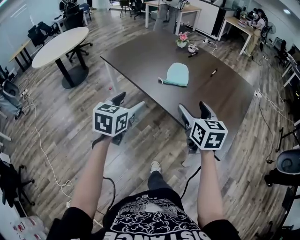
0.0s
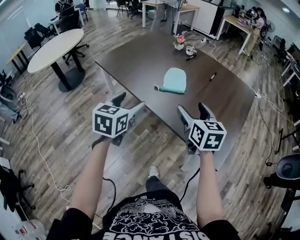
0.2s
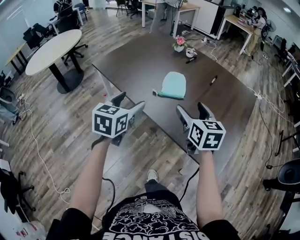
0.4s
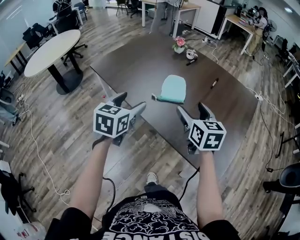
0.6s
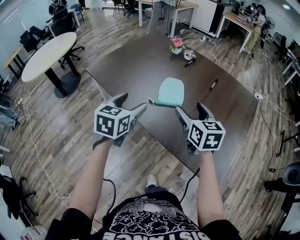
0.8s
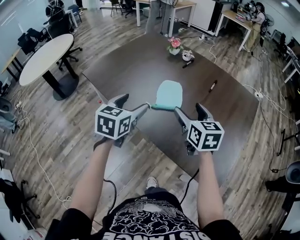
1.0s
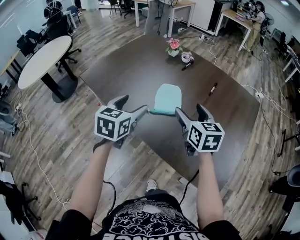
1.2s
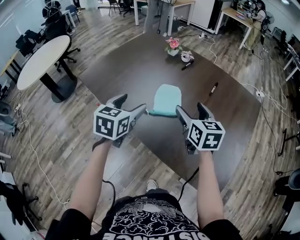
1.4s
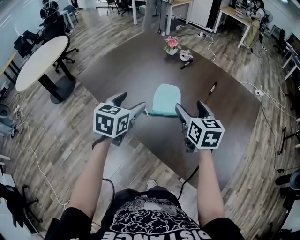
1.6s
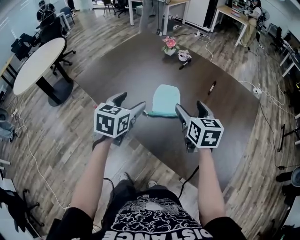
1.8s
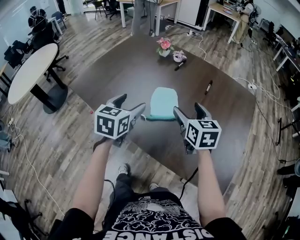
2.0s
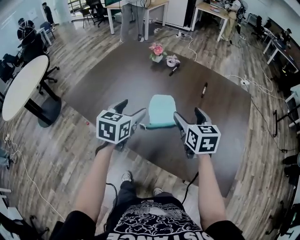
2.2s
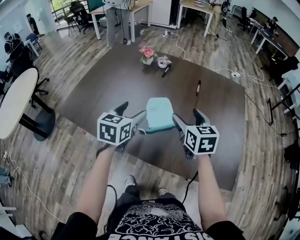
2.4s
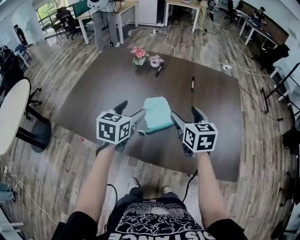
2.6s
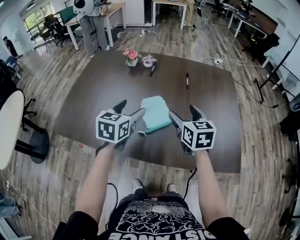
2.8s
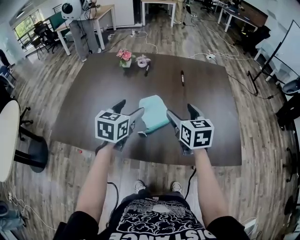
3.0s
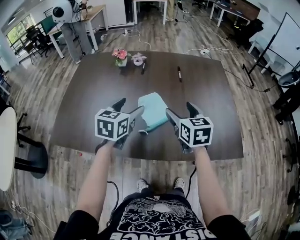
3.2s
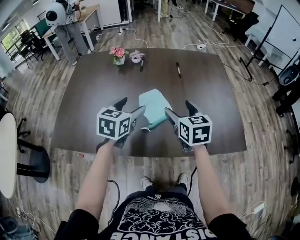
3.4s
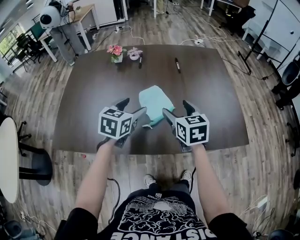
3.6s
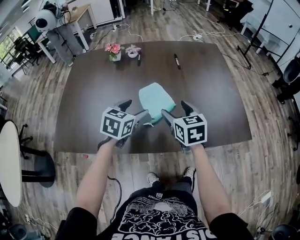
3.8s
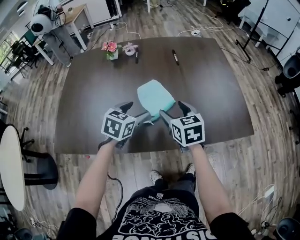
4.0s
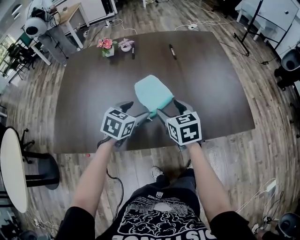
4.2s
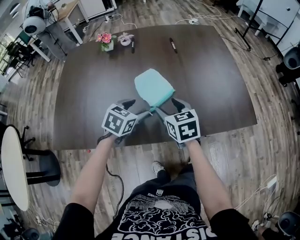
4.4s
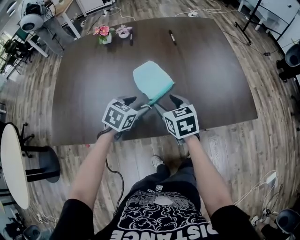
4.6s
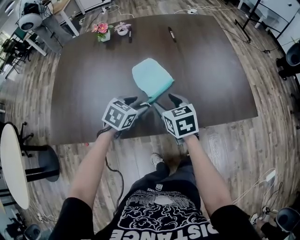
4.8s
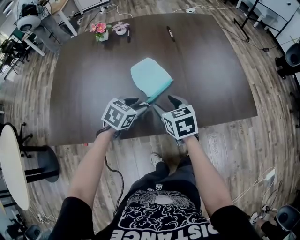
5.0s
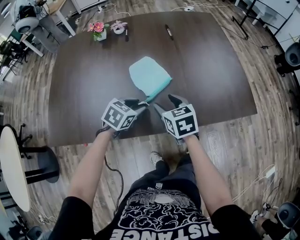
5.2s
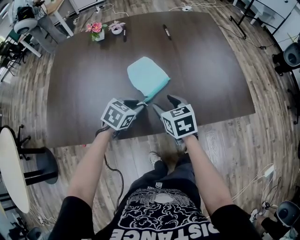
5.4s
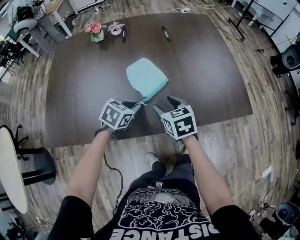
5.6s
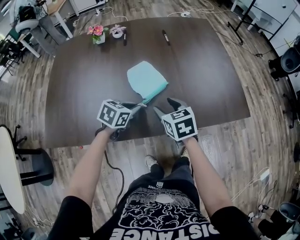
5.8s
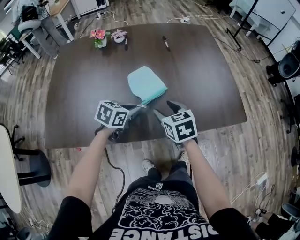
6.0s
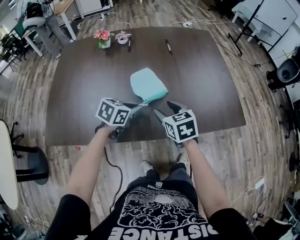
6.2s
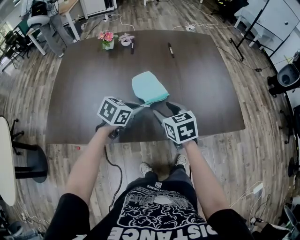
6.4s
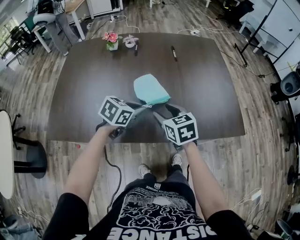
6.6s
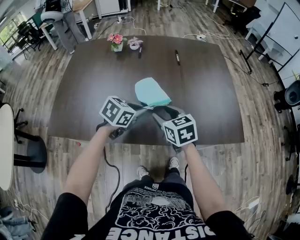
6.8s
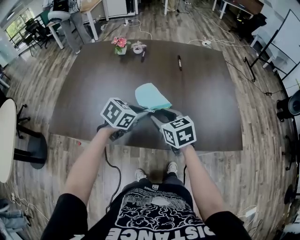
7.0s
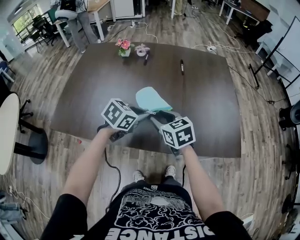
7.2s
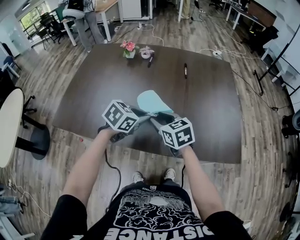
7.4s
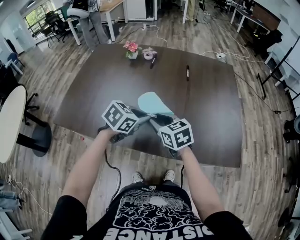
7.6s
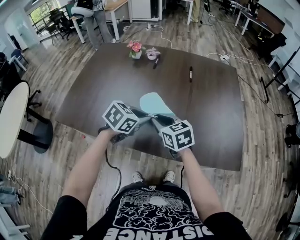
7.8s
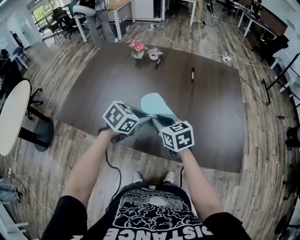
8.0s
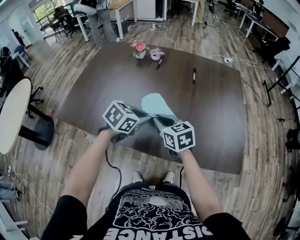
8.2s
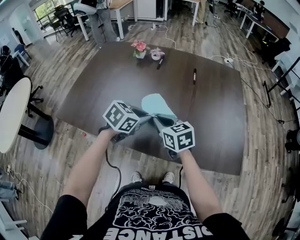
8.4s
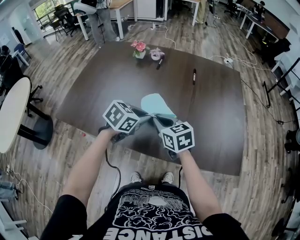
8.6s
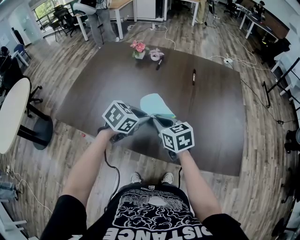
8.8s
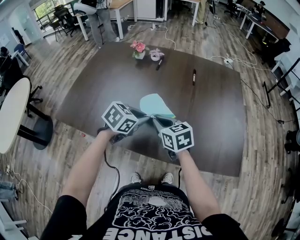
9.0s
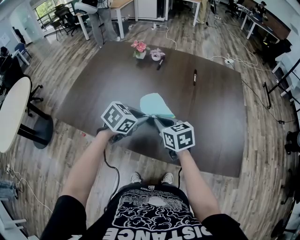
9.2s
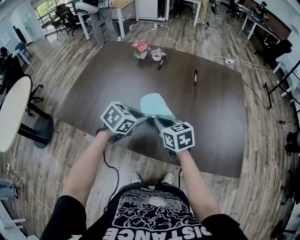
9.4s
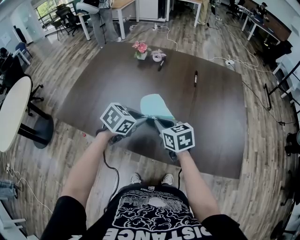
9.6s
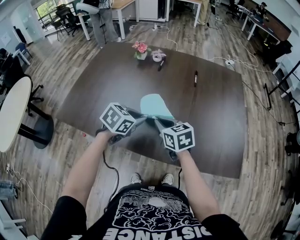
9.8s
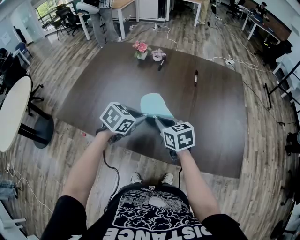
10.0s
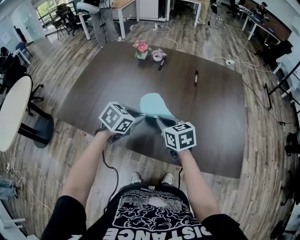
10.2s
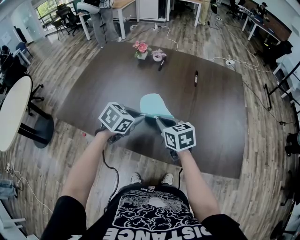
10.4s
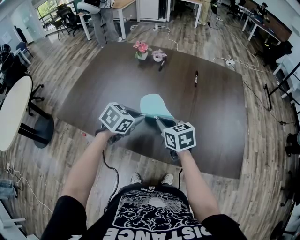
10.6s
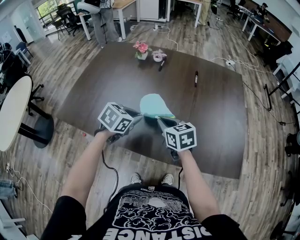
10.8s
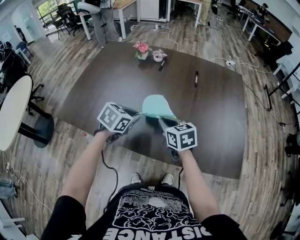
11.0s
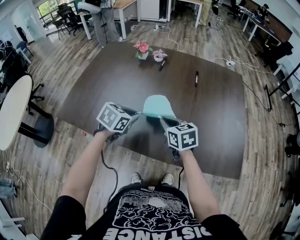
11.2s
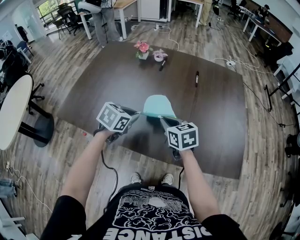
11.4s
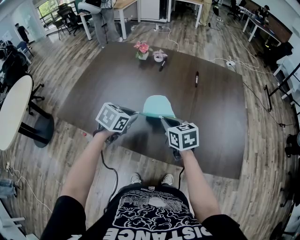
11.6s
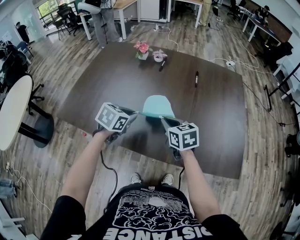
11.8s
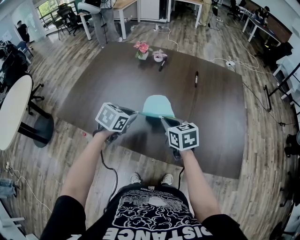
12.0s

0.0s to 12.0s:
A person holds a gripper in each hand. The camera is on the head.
0.0s to 1.6s: The two grippers go approximately 25 cm forward.
1.6s to 3.0s: The left gripper changes place by about 10 cm, and changes its angle by some 30 degrees, while the right gripper turns by about 30 degrees.
3.0s to 4.4s: The right gripper moves downward, backward and to the left, approximately 15 cm. The left gripper travels downward by roughly 15 cm, and swivels roughly 30 degrees.
4.4s to 6.0s: The left gripper closes up.
6.0s to 7.6s: The left gripper shifts roughly 10 cm upward, while the right gripper ends up roughly 5 cm from where it was, and changes its angle by roughly 30 degrees.
7.6s to 10.4s: The grippers make only small movements.
10.4s to 12.0s: There are only small adjustments of the grippers.

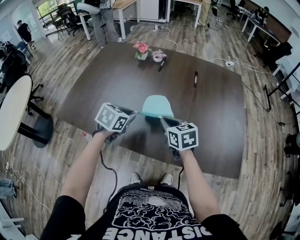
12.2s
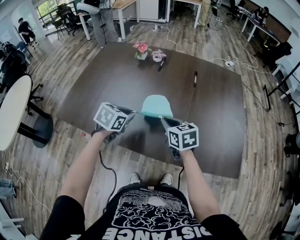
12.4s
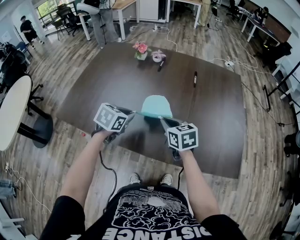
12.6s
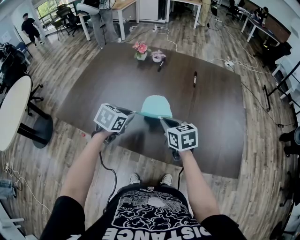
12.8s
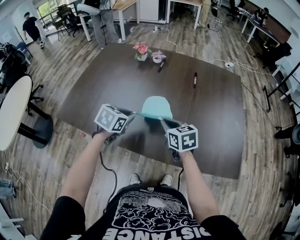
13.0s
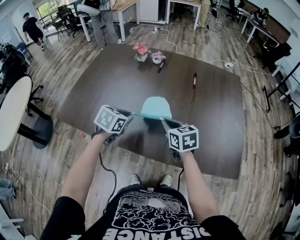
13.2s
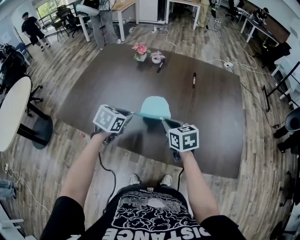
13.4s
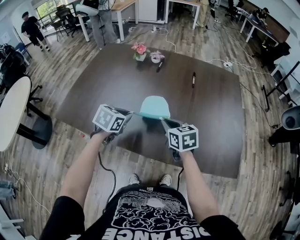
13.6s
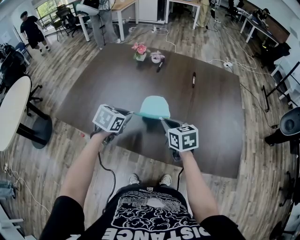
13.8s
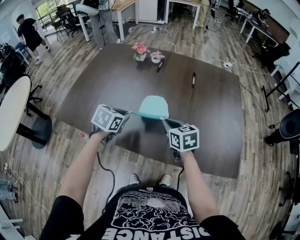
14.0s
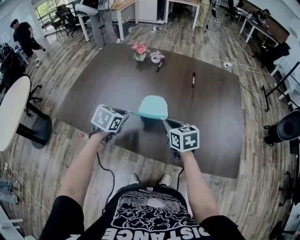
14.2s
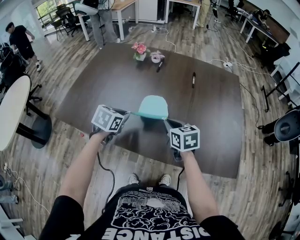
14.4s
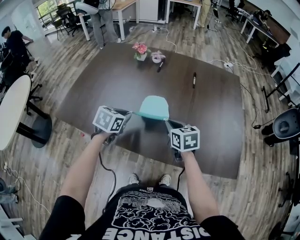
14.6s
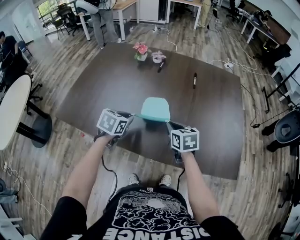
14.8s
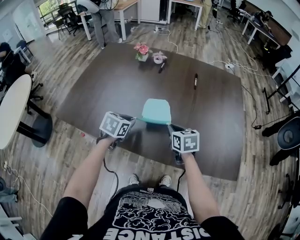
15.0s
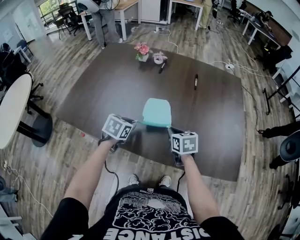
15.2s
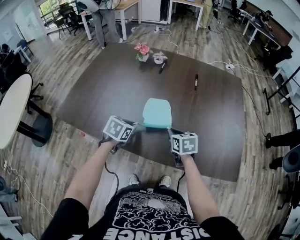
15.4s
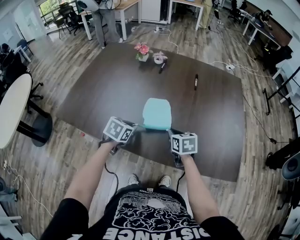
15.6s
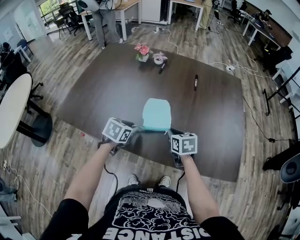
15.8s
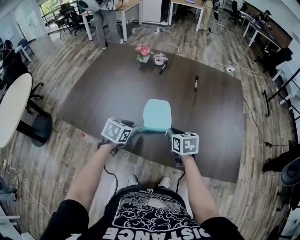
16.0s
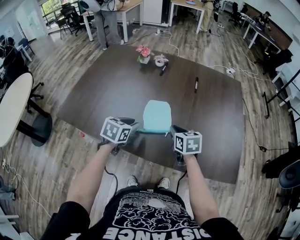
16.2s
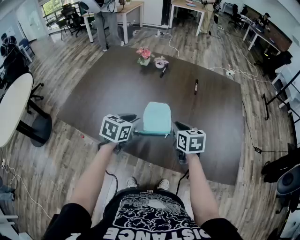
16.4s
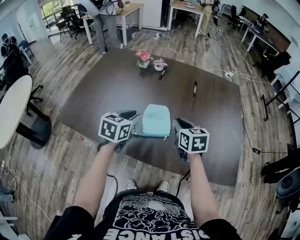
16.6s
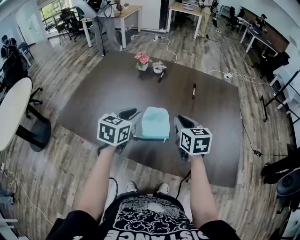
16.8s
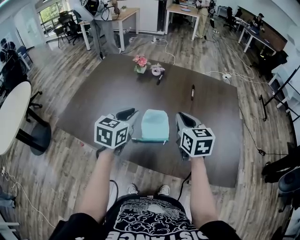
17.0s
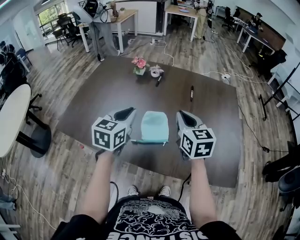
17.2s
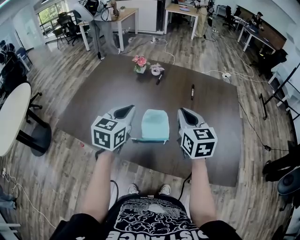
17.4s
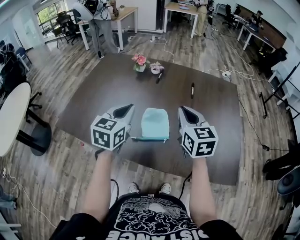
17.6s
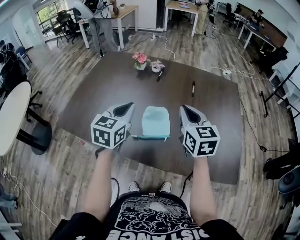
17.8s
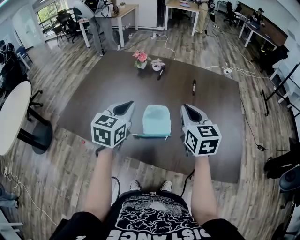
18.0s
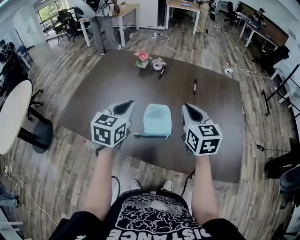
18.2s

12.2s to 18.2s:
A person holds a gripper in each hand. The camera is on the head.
12.2s to 13.8s: There are only small adjustments of the grippers.
13.8s to 15.2s: The right gripper shifts roughly 5 cm downward, while the left gripper moves approximately 5 cm.
15.2s to 16.6s: The grippers both shift upward by roughly 10 cm.
16.6s to 18.2s: Both grippers travel together upward, roughly 10 cm.

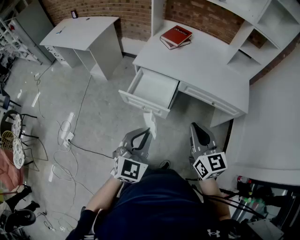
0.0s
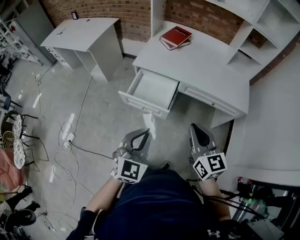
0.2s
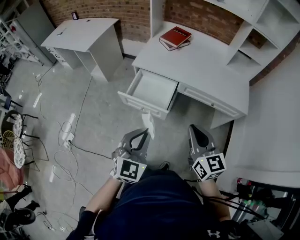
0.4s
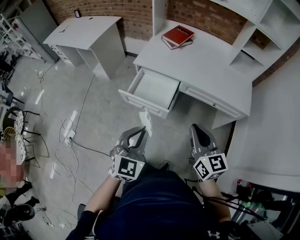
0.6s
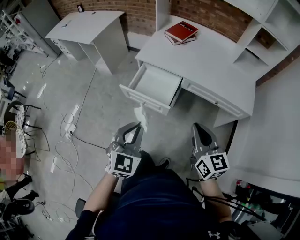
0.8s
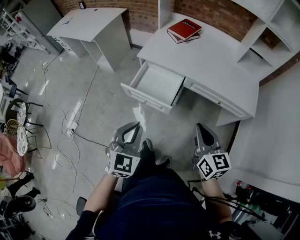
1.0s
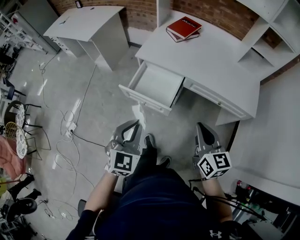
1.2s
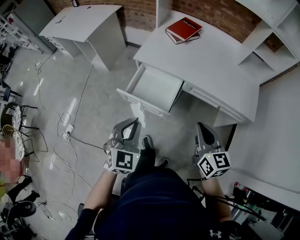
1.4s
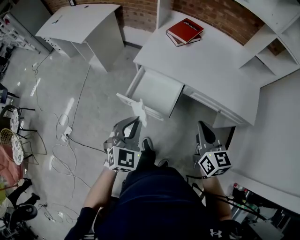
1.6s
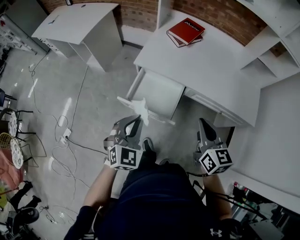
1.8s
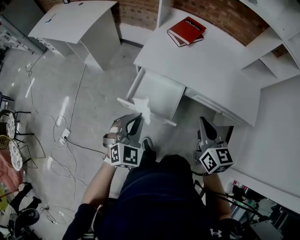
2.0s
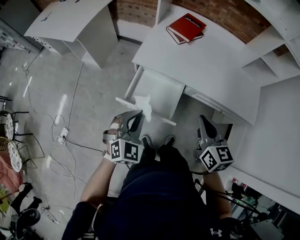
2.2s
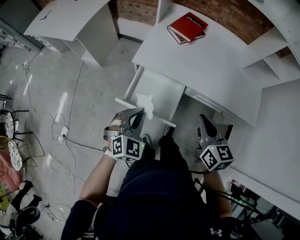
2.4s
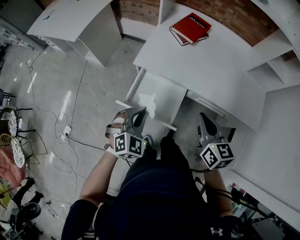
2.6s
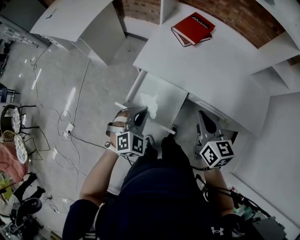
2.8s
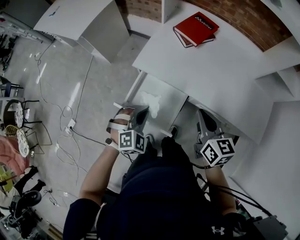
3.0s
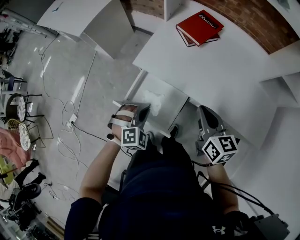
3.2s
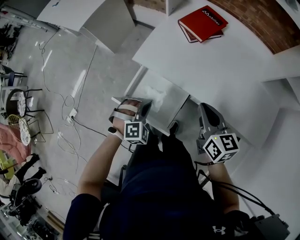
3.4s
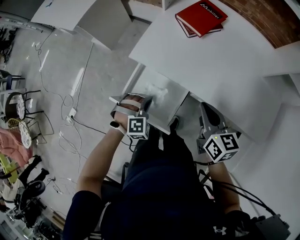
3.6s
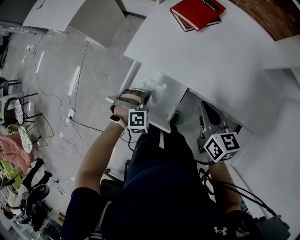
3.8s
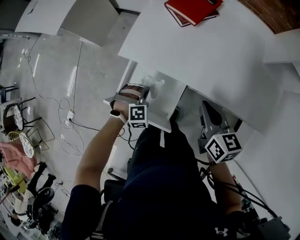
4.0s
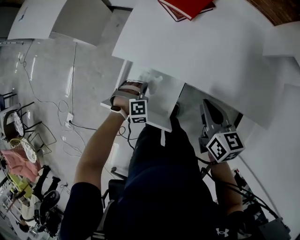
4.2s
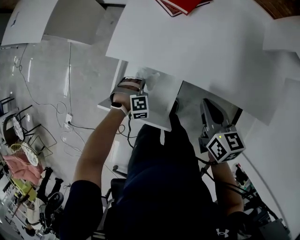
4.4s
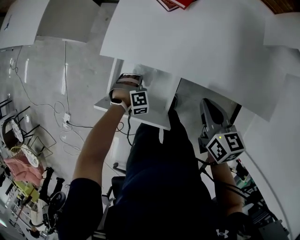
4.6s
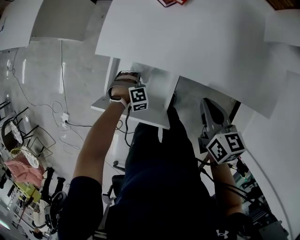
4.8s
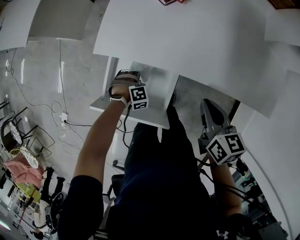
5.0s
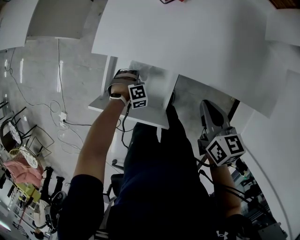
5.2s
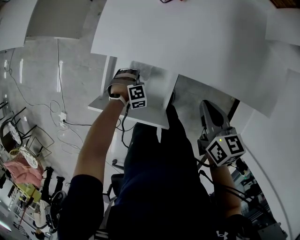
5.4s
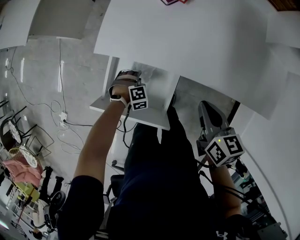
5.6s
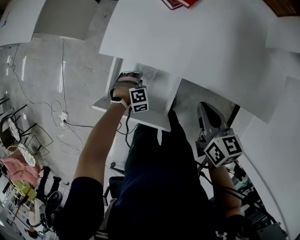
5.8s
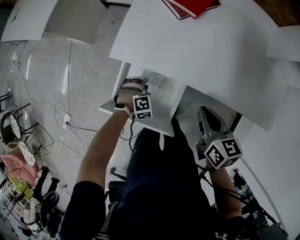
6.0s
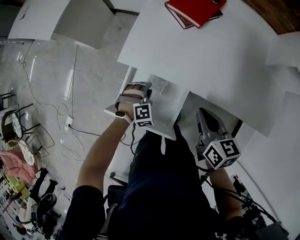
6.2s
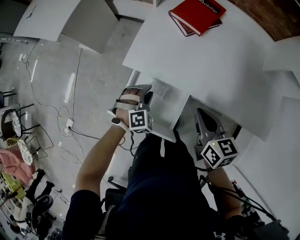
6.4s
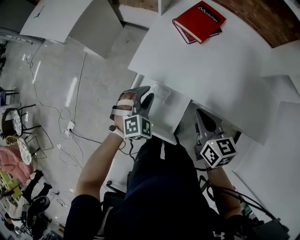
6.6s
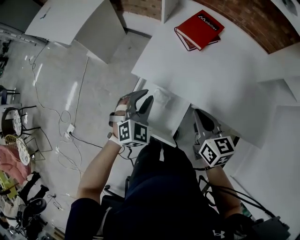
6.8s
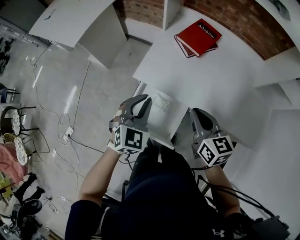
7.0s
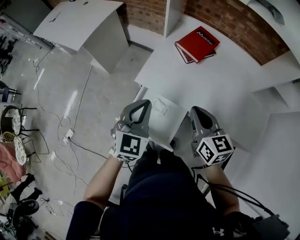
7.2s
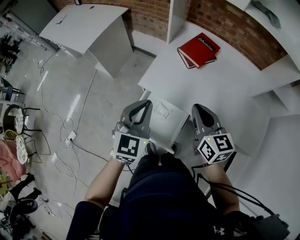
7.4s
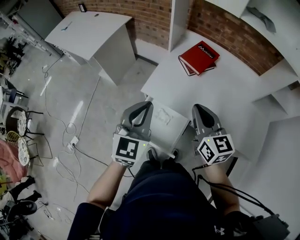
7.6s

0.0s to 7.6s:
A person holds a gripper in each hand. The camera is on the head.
0.0s to 1.6s: The right gripper shifts roughly 15 cm forward and downward; the left gripper travels forward by roughly 15 cm.
1.6s to 3.0s: The left gripper goes roughly 20 cm forward and downward, and changes its angle by some 30 degrees, while the right gripper is displaced forward by about 20 cm.
3.0s to 4.6s: The right gripper shifts approximately 10 cm downward, while the left gripper goes about 25 cm downward, and changes its angle by approximately 40 degrees.
4.6s to 6.0s: The left gripper opens its fingers.
6.0s to 7.6s: The left gripper is displaced upward by approximately 50 cm, tilts its fingers approximately 50 degrees upward, and closes its fingers; the right gripper goes about 20 cm upward, and swivels roughly 30 degrees.
